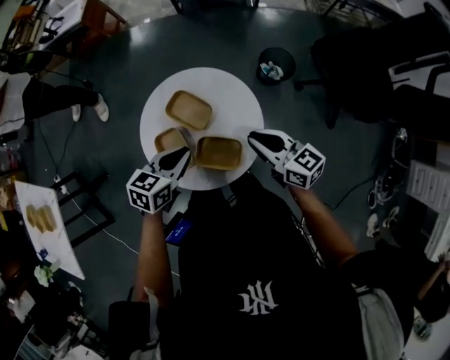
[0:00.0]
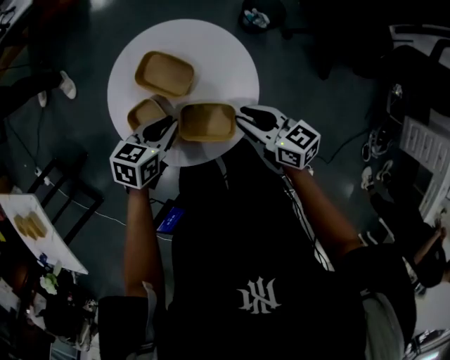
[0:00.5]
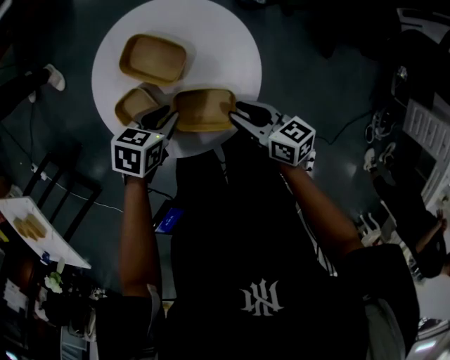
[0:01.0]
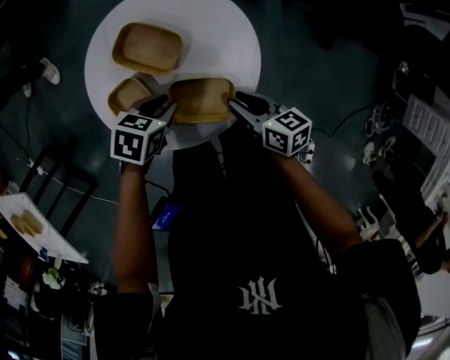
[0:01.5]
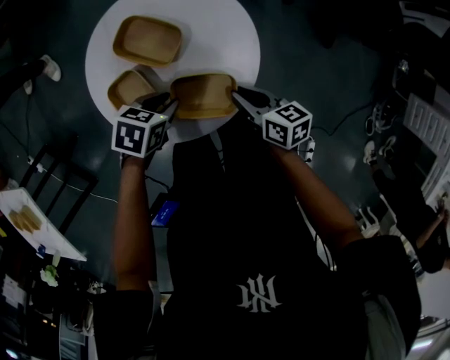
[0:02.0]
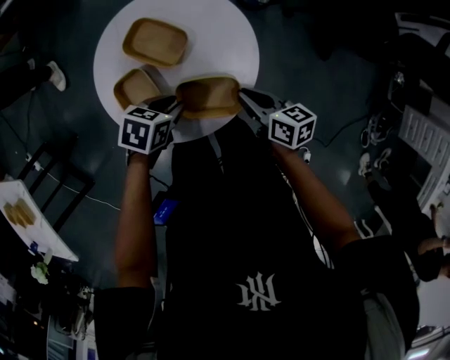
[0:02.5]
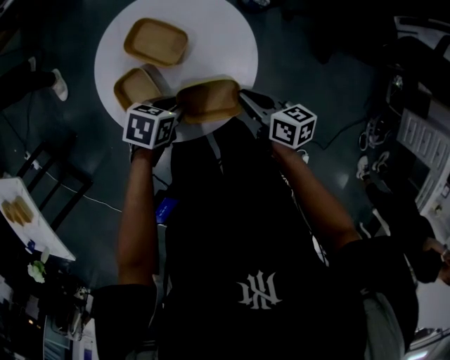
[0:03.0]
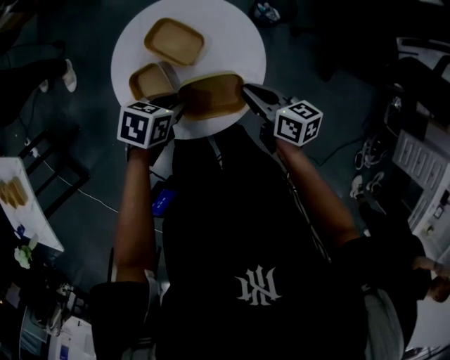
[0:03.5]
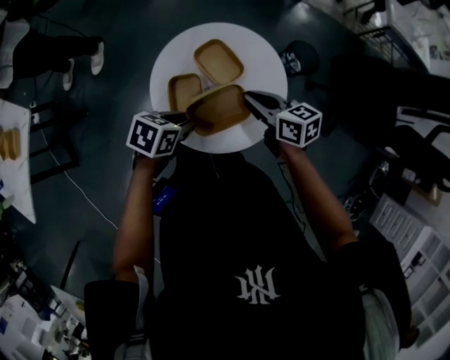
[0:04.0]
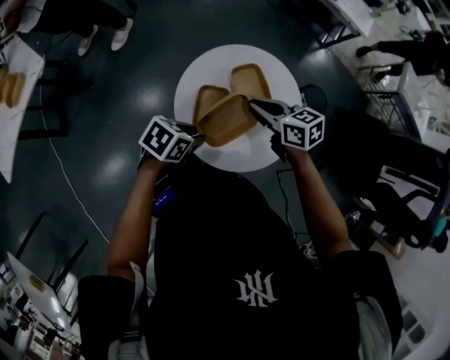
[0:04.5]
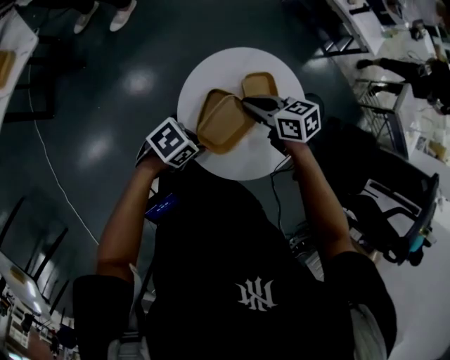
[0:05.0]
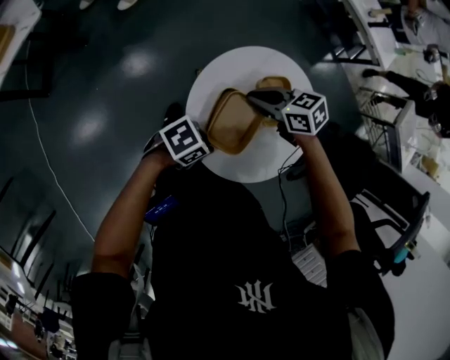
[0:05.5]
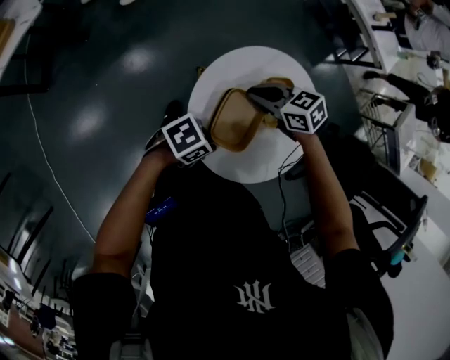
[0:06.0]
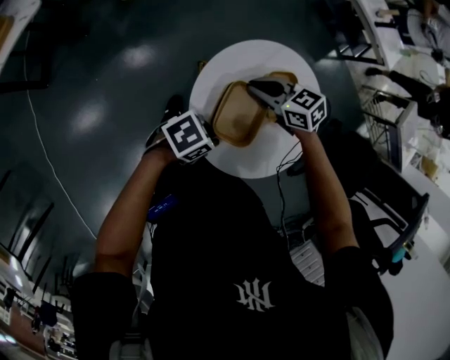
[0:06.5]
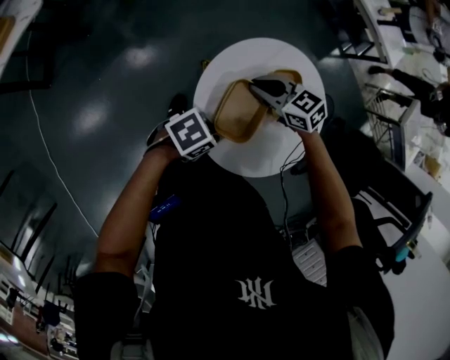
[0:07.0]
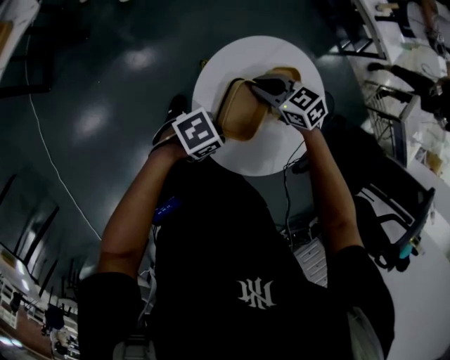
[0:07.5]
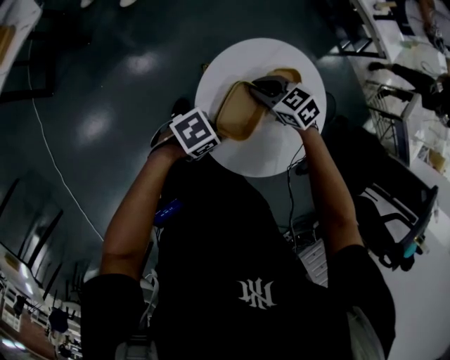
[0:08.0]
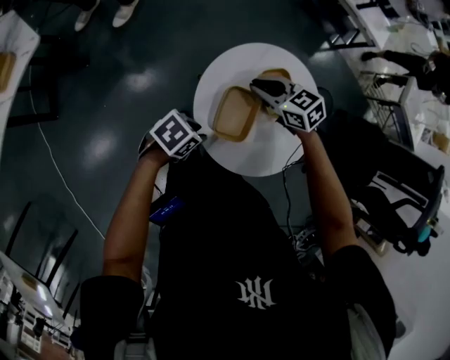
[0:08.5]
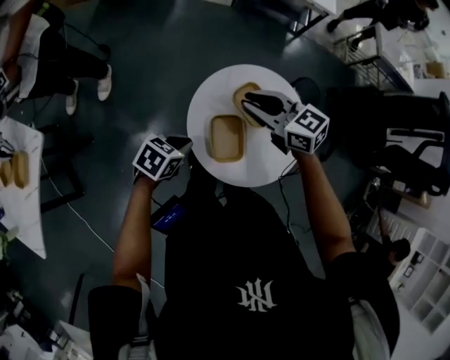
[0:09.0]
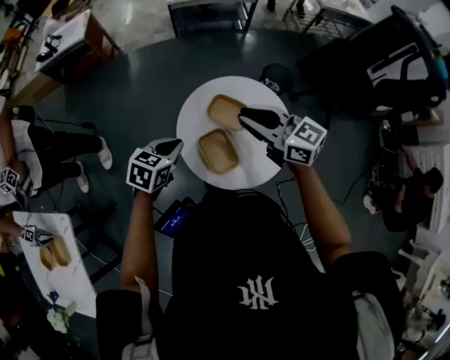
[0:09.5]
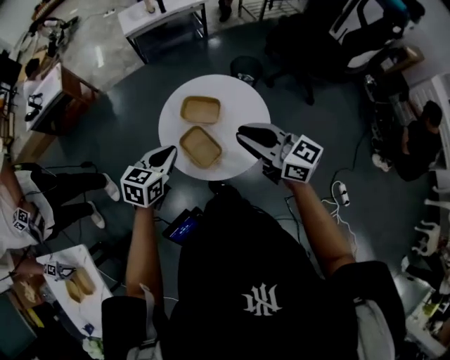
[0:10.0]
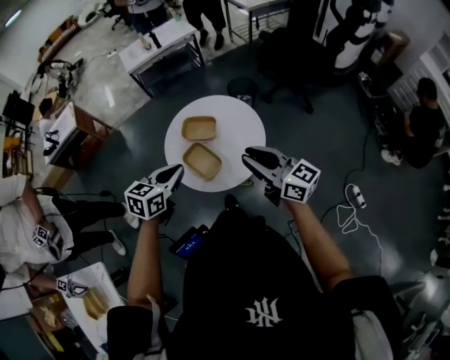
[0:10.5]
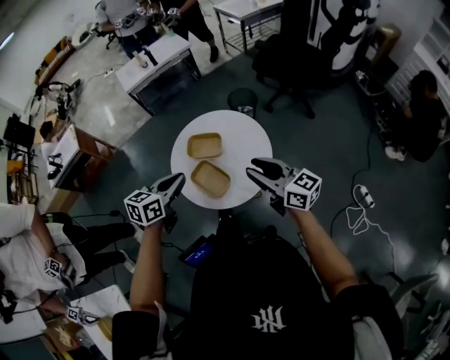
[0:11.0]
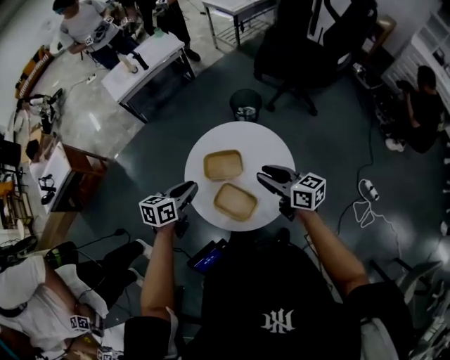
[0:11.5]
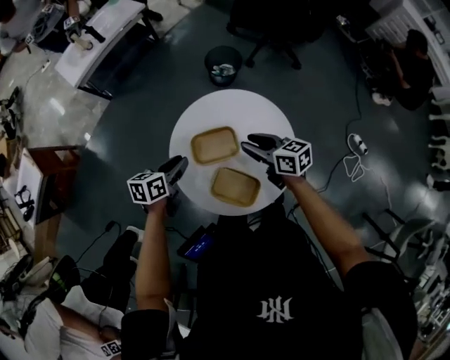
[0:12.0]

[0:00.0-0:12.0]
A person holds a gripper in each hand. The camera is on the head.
0:00.0 to 0:02.0: The grippers both shift downward by about 15 cm. The right gripper rotates some 30 degrees; the left gripper swivels roughly 30 degrees.
0:02.0 to 0:04.0: The right gripper changes place by approximately 15 cm, and turns by some 30 degrees; the left gripper goes about 10 cm upward, and changes its angle by roughly 20 degrees.
0:04.0 to 0:06.0: The left gripper moves downward, about 5 cm; the right gripper shifts by approximately 25 cm, and changes its angle by roughly 50 degrees.
0:06.0 to 0:08.0: The grippers move only a little.
0:08.0 to 0:10.0: The right gripper moves upward, approximately 30 cm, and points its fingers approximately 50 degrees further upward; the left gripper goes about 20 cm upward, rotates roughly 40 degrees, and closes.
0:10.0 to 0:12.0: The left gripper changes place by roughly 25 cm, swivels roughly 30 degrees, and opens up, while the right gripper moves downward, about 20 cm, and turns by about 40 degrees.

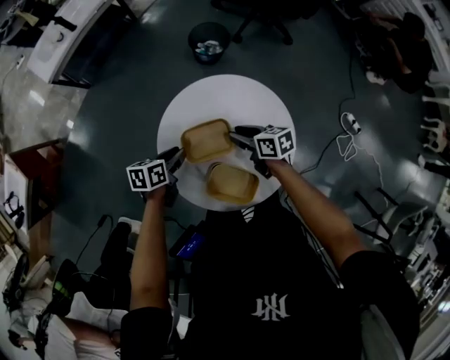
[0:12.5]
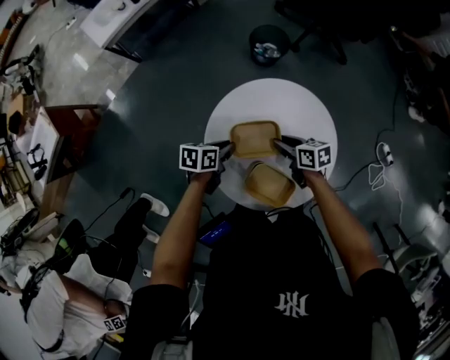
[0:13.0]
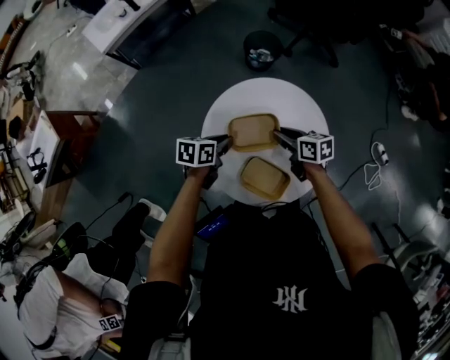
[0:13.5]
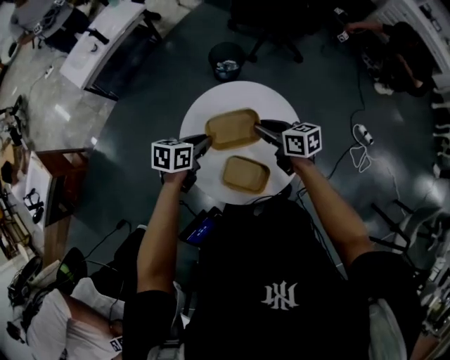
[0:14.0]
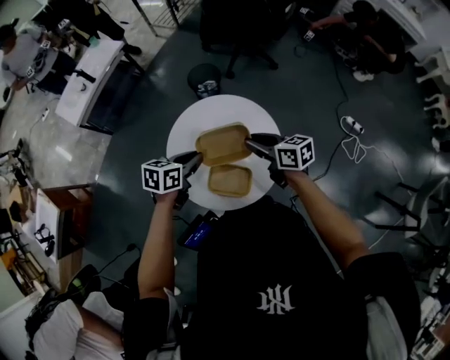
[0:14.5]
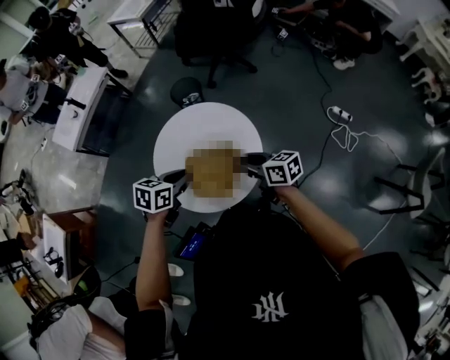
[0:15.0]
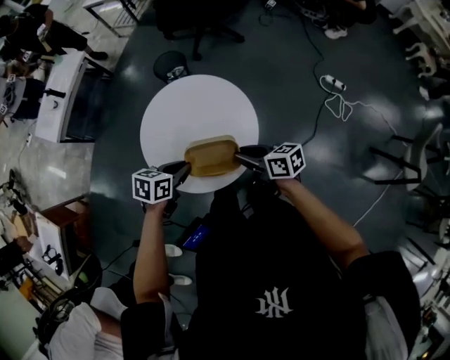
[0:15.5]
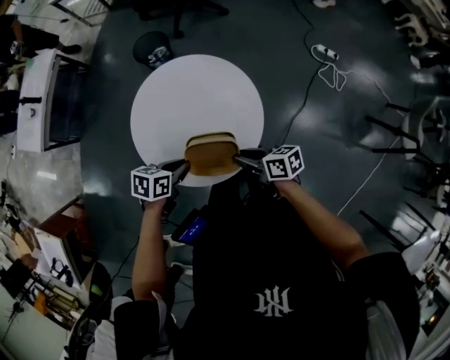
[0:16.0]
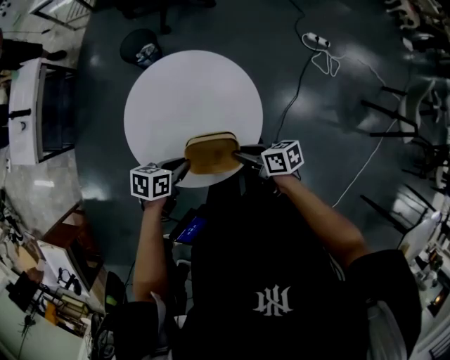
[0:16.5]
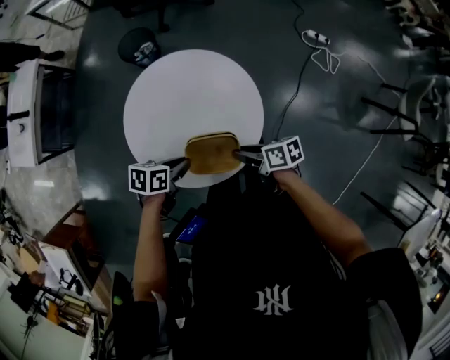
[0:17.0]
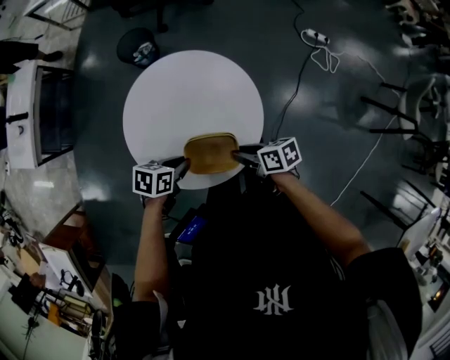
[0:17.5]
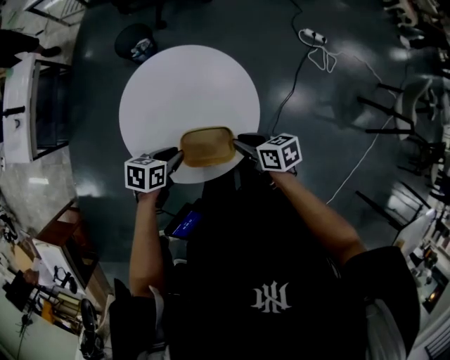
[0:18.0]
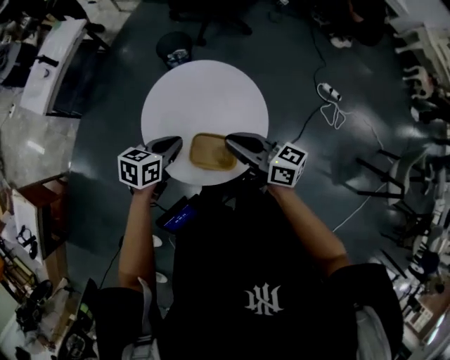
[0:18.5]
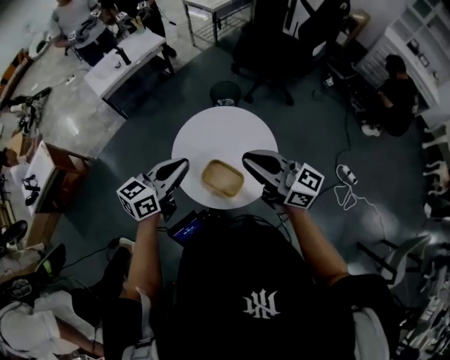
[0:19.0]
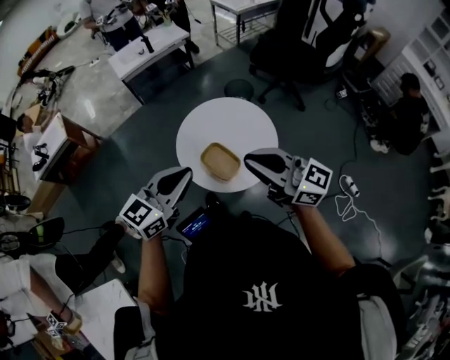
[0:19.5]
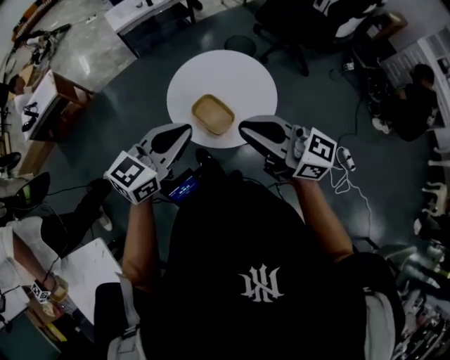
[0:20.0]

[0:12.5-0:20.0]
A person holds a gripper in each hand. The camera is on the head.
0:12.5 to 0:14.5: The grippers both shift upward by roughly 15 cm. The left gripper swivels about 30 degrees. The right gripper changes its angle by roughly 20 degrees.
0:14.5 to 0:16.5: The left gripper goes roughly 10 cm downward, and swivels some 30 degrees. Meanwhile the right gripper ends up about 20 cm from where it was, and rotates about 30 degrees.
0:16.5 to 0:18.0: The grippers move only a little.
0:18.0 to 0:20.0: The grippers both shift upward by roughly 35 cm. The left gripper points its fingers approximately 40 degrees further upward. Meanwhile the right gripper tilts its fingers approximately 60 degrees upward.

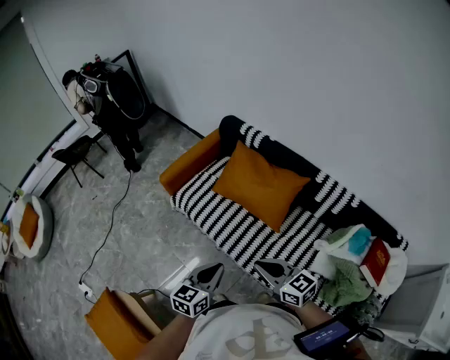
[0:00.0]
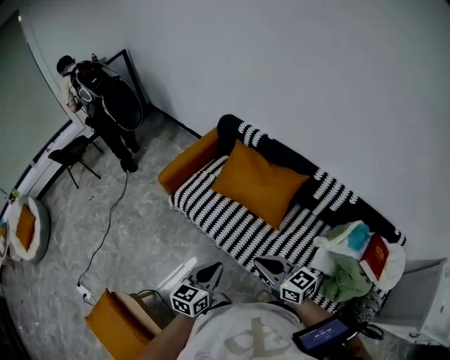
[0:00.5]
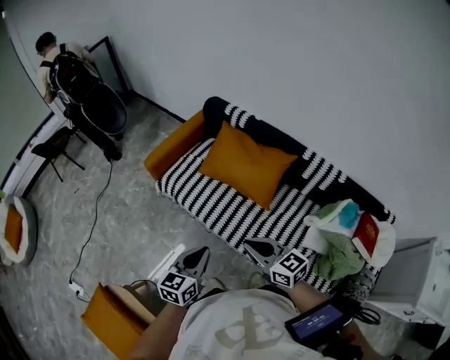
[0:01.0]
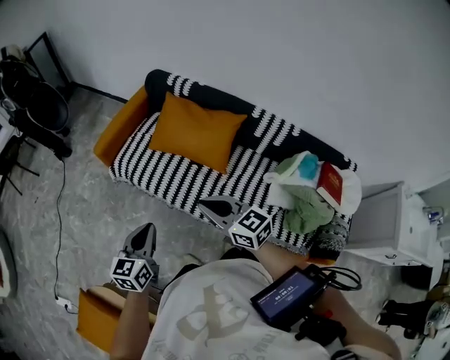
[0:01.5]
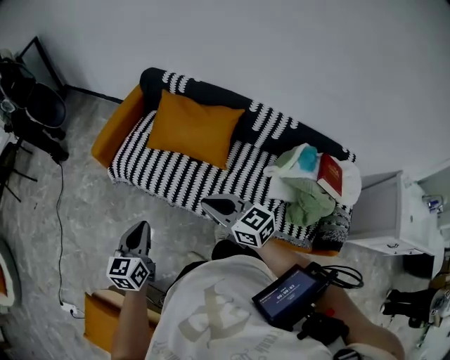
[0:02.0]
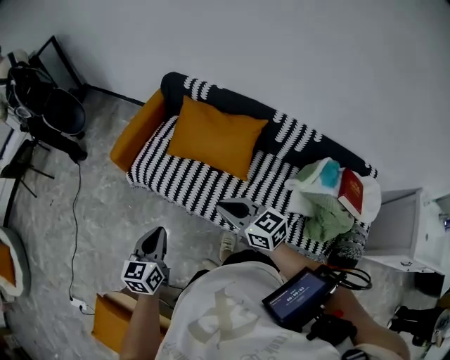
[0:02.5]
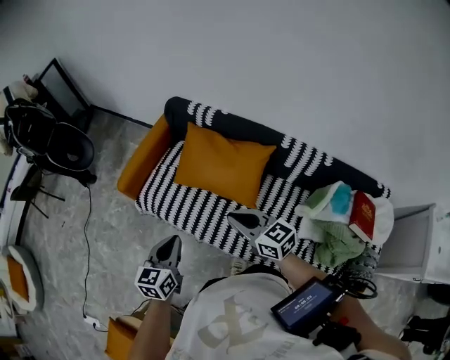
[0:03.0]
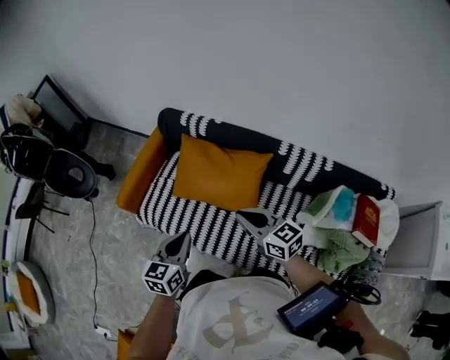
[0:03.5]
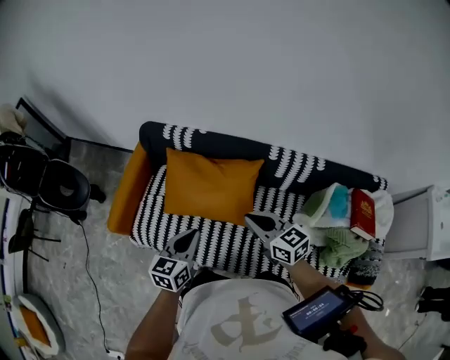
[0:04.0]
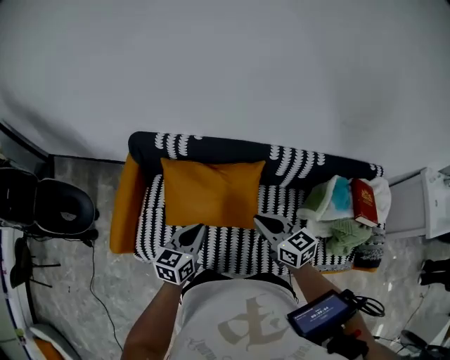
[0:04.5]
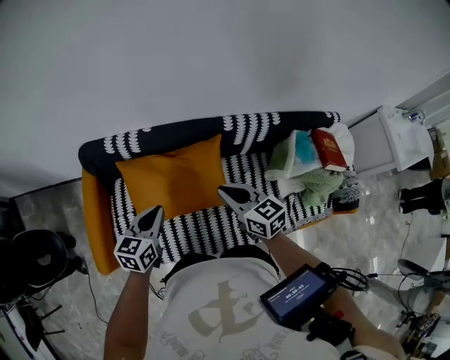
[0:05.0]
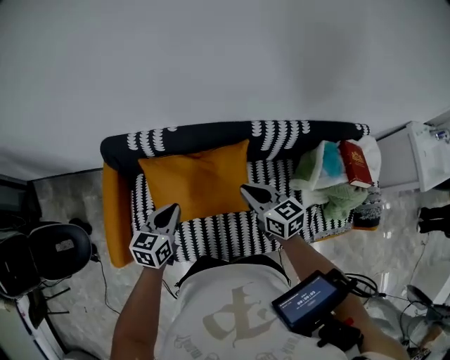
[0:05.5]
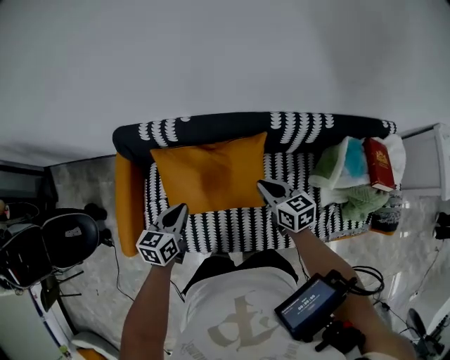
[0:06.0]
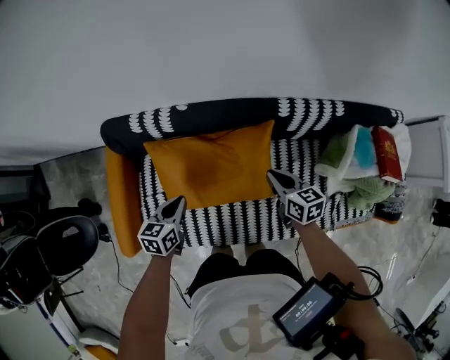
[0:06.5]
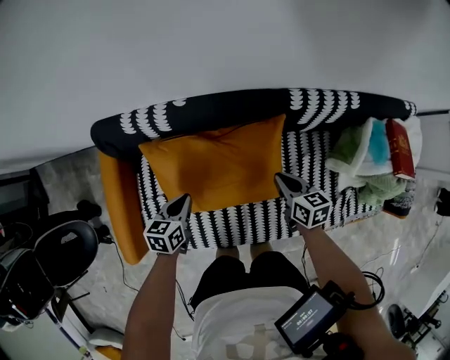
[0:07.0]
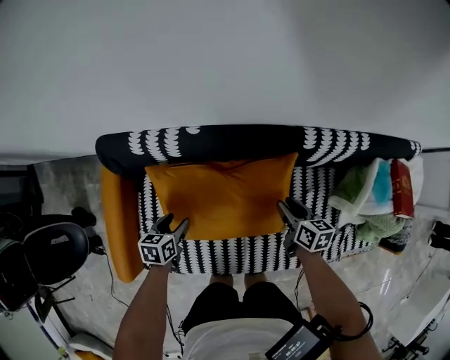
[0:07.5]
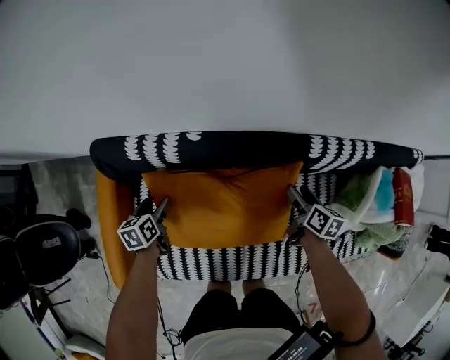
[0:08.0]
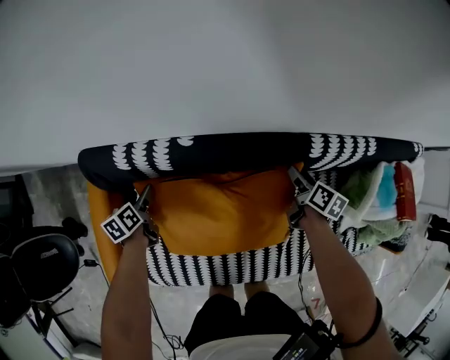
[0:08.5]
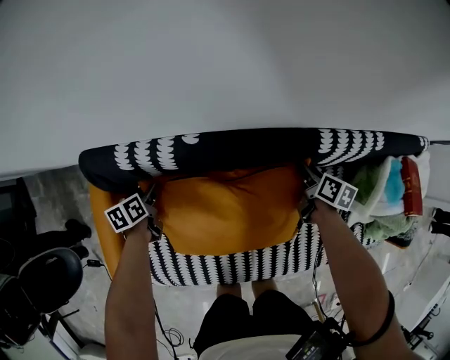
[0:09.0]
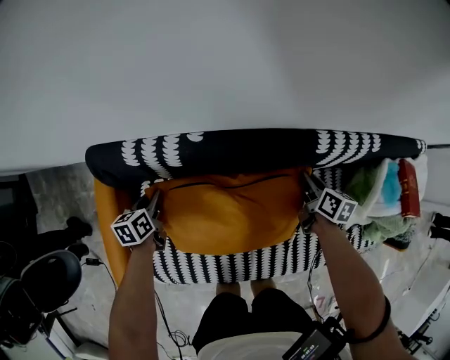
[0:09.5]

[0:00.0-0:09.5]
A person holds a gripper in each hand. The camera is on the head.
0:00.0 to 0:02.0: The left gripper heads to the left, covering about 15 cm. Meanwhile the right gripper moves to the left, approximately 5 cm.
0:02.0 to 0:04.0: Both grippers travel together forward and to the right, roughly 30 cm. The left gripper turns by roughly 20 degrees.
0:04.0 to 0:05.5: The right gripper travels forward by about 10 cm, and changes its angle by roughly 20 degrees; the left gripper goes about 20 cm forward and to the left.
0:05.5 to 0:07.5: The grippers both shift downward by about 25 cm. The right gripper swivels some 30 degrees, and opens; the left gripper swivels roughly 30 degrees, and opens its fingers.
0:07.5 to 0:09.5: The left gripper shifts about 15 cm forward and to the left, and closes its fingers; the right gripper shifts approximately 10 cm forward, and closes up.
